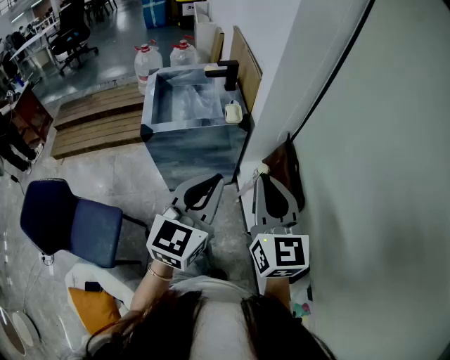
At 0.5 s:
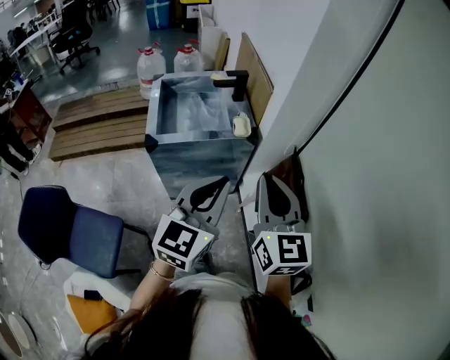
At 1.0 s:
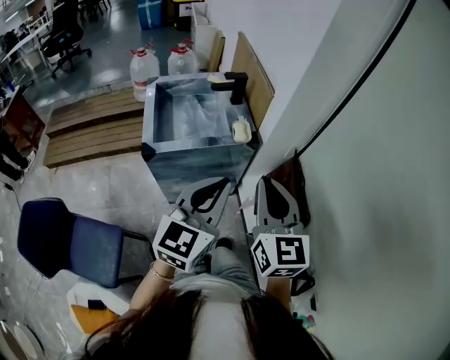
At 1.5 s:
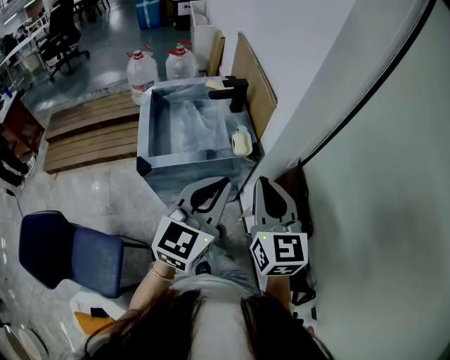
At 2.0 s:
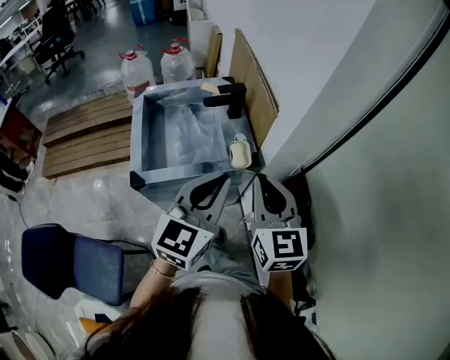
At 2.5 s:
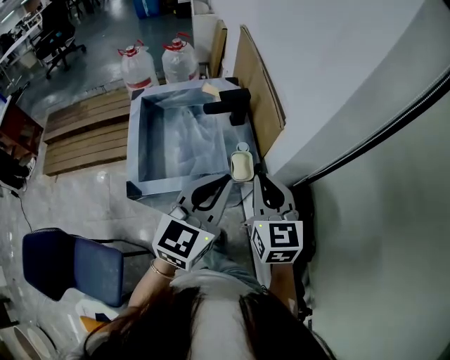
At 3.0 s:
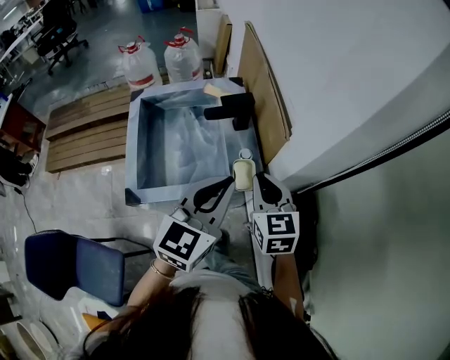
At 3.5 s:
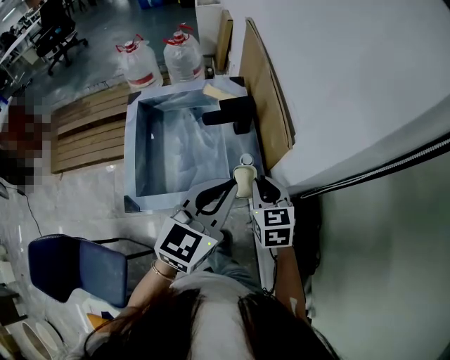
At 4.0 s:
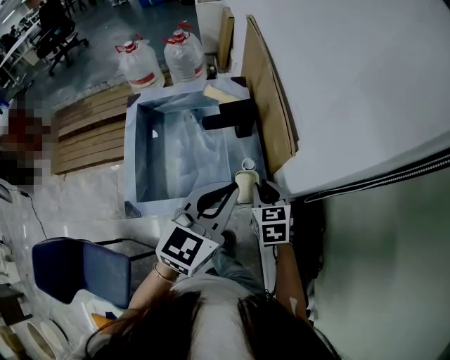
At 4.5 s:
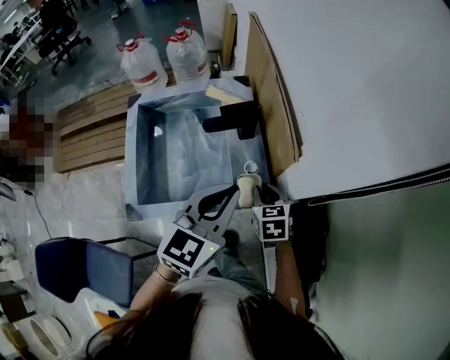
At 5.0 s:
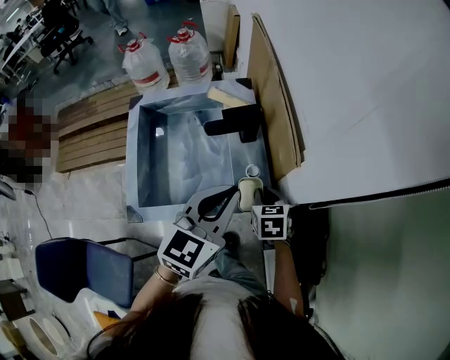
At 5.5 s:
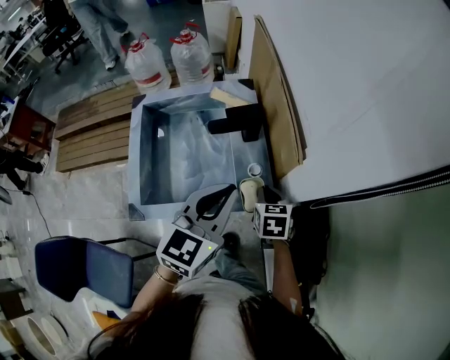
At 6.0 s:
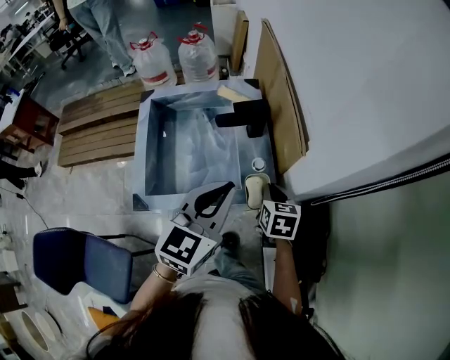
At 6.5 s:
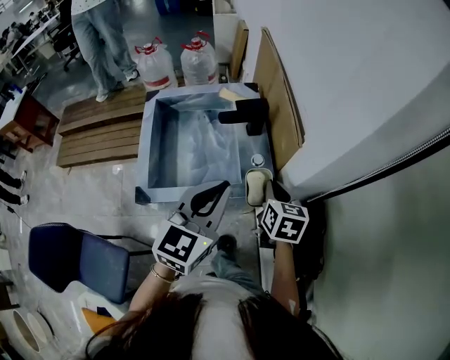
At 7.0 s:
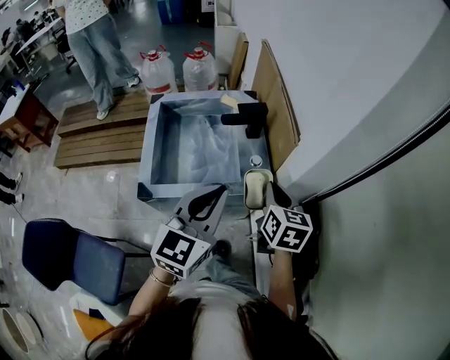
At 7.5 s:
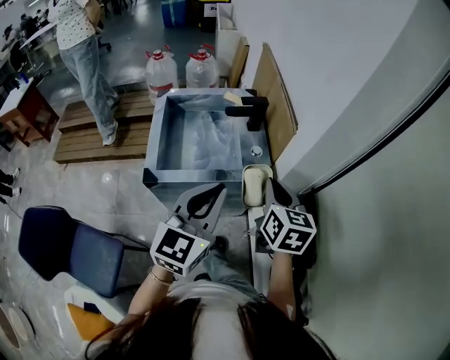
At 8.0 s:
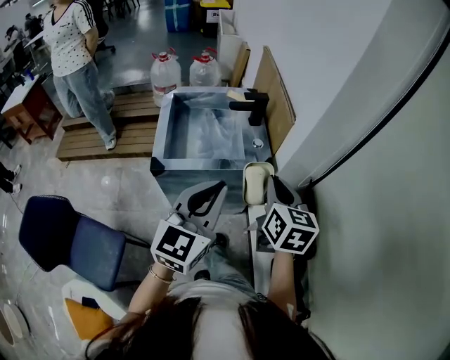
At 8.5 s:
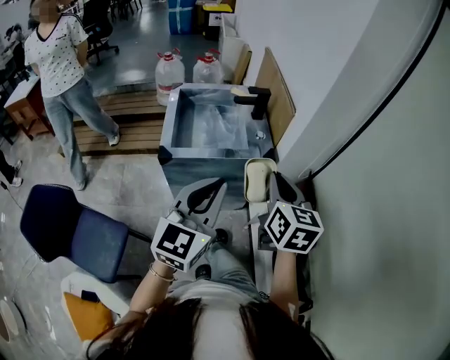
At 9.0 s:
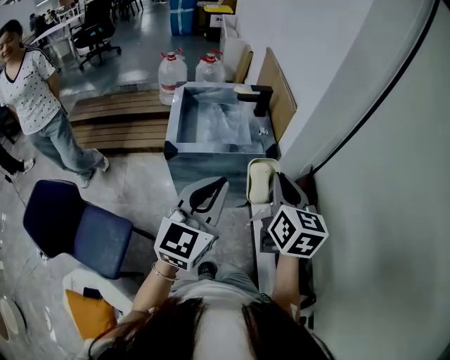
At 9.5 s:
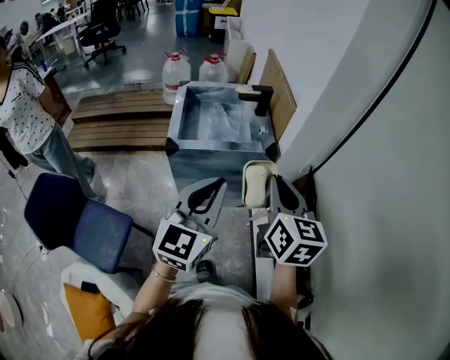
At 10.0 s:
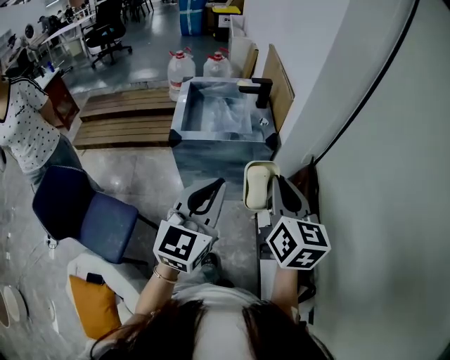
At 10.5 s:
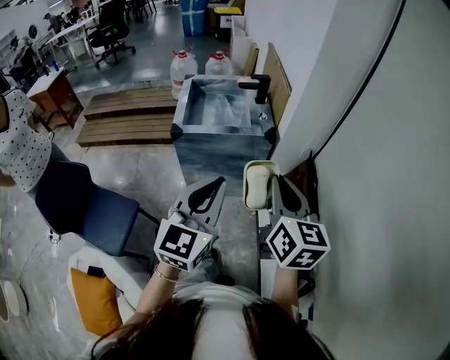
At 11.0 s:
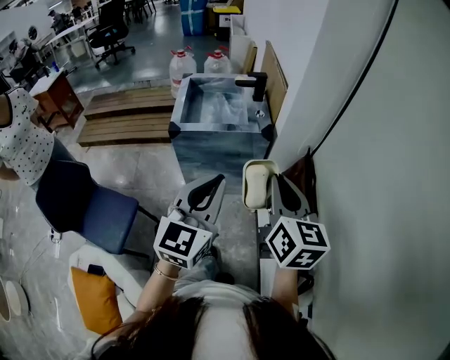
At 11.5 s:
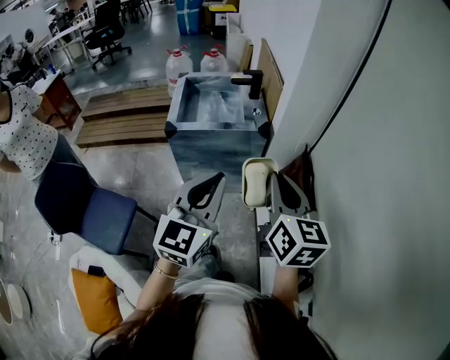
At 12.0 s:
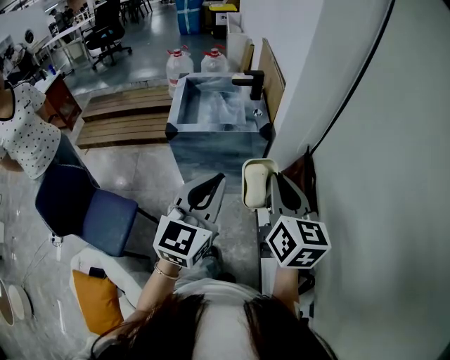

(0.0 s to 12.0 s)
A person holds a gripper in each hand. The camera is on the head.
0.0 s - 2.0 s: The grippers both shift forward by about 25 cm.
2.0 s - 4.0 s: The left gripper goes roughly 20 cm forward and downward, while the right gripper heads downward and forward, covering some 30 cm, and angles its fingers downward, by roughly 30 degrees.
4.0 s - 6.0 s: The grippers stay close to where they were, moving slightly.
6.0 s - 8.0 s: The right gripper travels backward and upward by roughly 30 cm, and swivels about 20 degrees. Meanwhile the left gripper shifts roughly 25 cm backward.
8.0 s - 10.0 s: The grippers both shift backward by roughly 20 cm.
10.0 s - 12.0 s: The right gripper shifts by about 5 cm.

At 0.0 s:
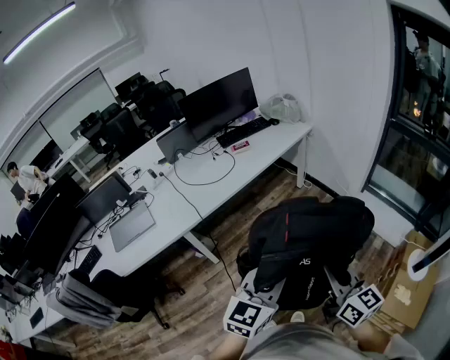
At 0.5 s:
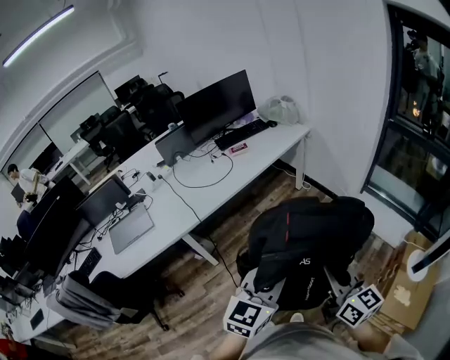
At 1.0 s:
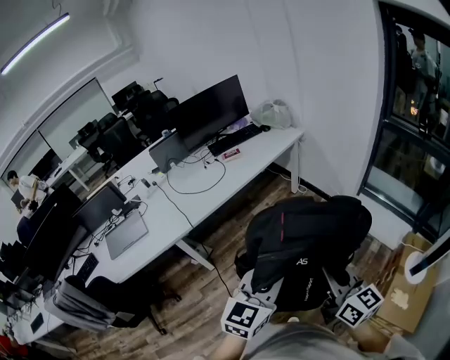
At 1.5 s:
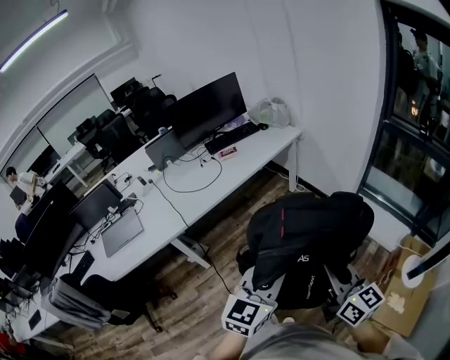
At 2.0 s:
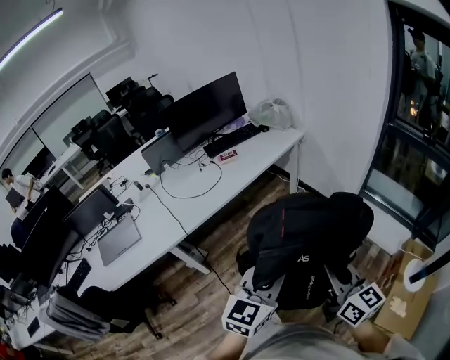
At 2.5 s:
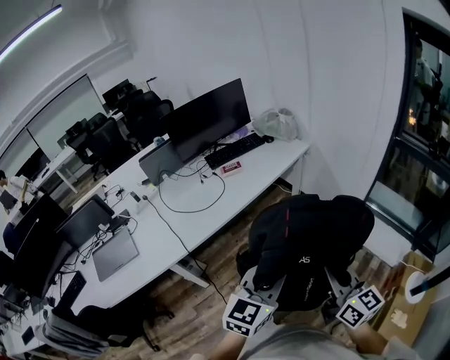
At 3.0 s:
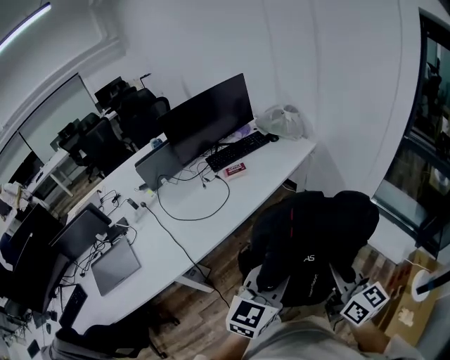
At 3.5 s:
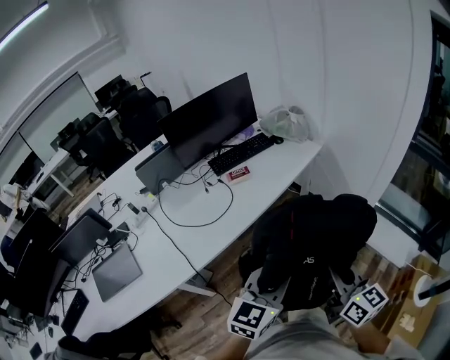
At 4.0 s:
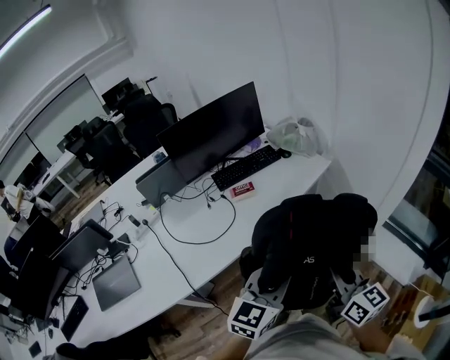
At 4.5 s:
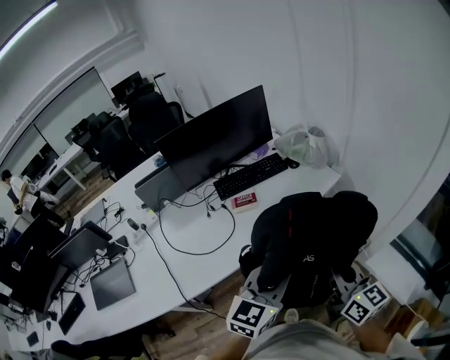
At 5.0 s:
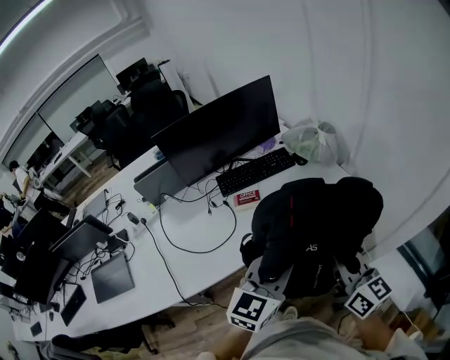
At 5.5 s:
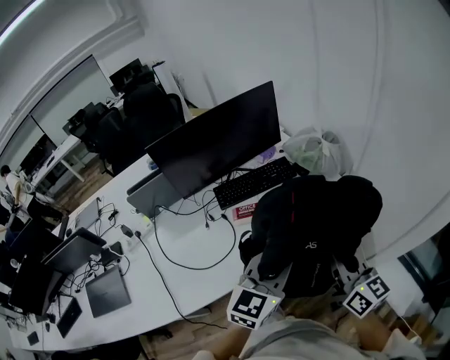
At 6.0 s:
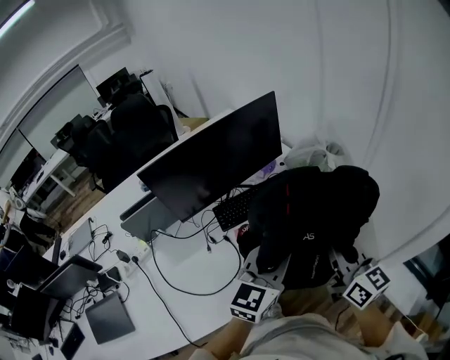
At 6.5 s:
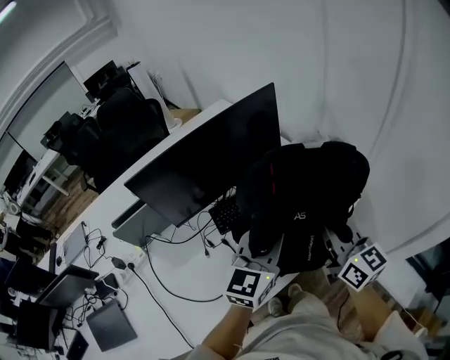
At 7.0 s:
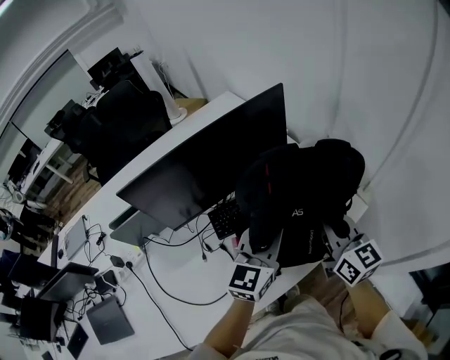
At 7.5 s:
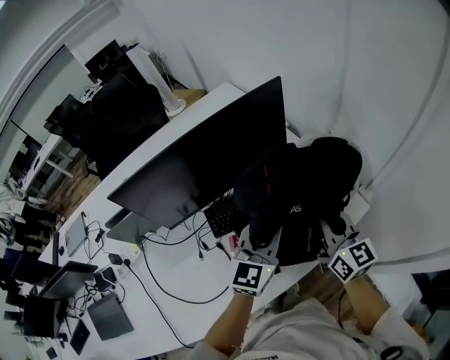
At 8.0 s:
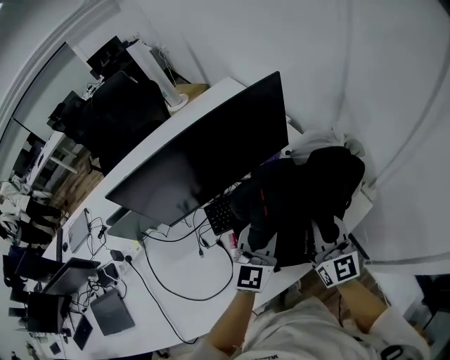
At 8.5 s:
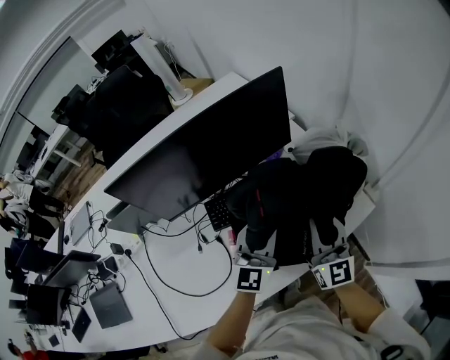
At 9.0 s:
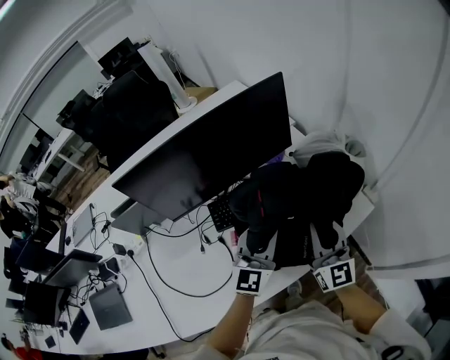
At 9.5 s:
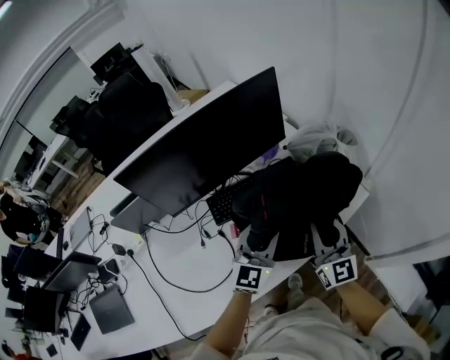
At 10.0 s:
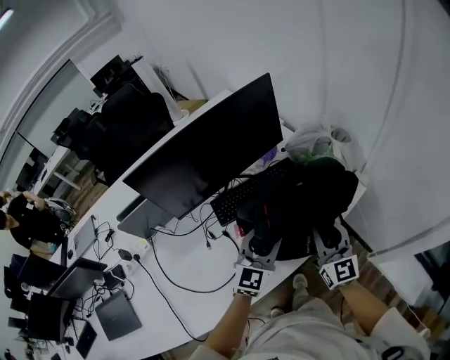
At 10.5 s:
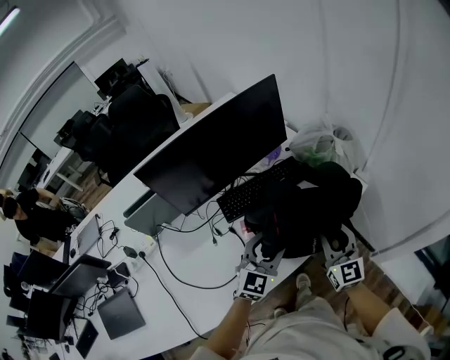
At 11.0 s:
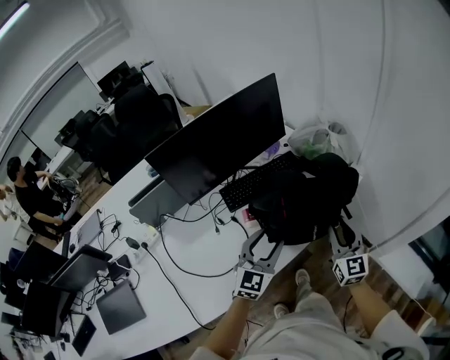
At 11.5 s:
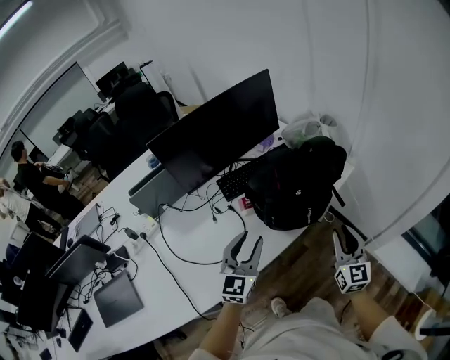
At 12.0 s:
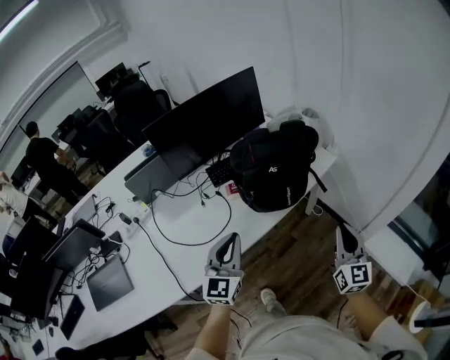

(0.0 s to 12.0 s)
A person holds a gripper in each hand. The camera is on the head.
0.0 s - 2.0 s: The two grippers go approximately 10 cm forward and to the right.
2.0 s - 4.0 s: Both grippers move forward, roughly 35 cm.
4.0 s - 6.0 s: Both grippers travel together forward, roughly 40 cm.
6.0 s - 8.0 s: The left gripper travels forward and downward by some 25 cm. Meanwhile the right gripper travels forward by about 25 cm.
8.0 s - 10.0 s: The grippers both shift backward by some 10 cm. The left gripper opens up.
10.0 s - 12.0 s: The right gripper travels backward and to the right by approximately 35 cm. Meanwhile the left gripper is displaced backward by approximately 30 cm, and closes.

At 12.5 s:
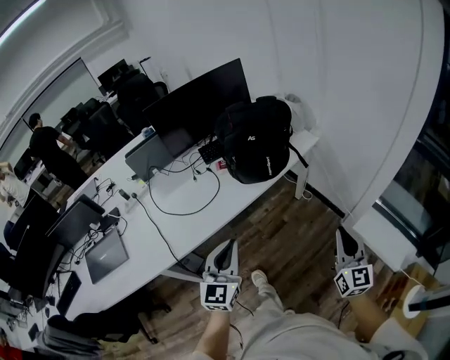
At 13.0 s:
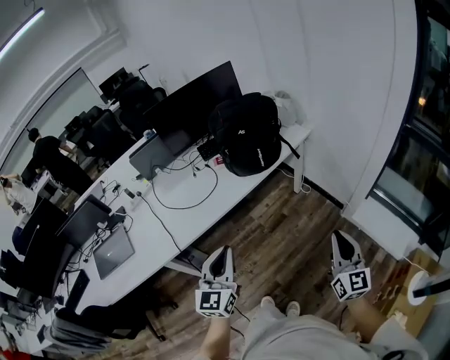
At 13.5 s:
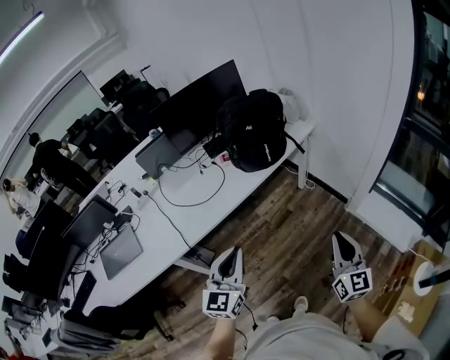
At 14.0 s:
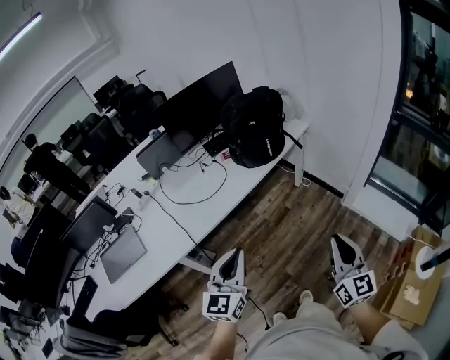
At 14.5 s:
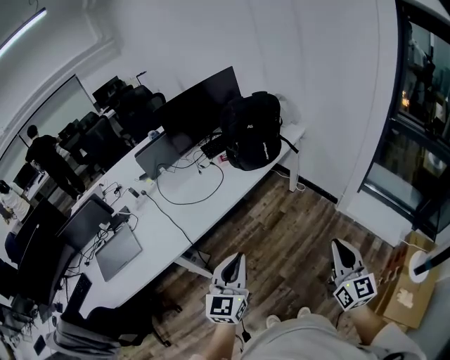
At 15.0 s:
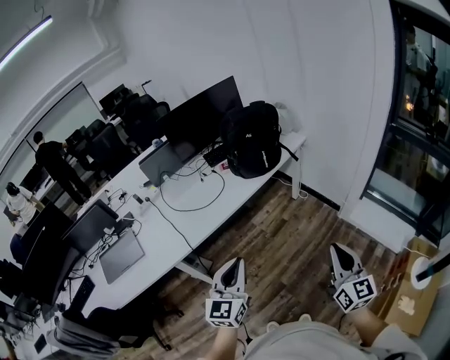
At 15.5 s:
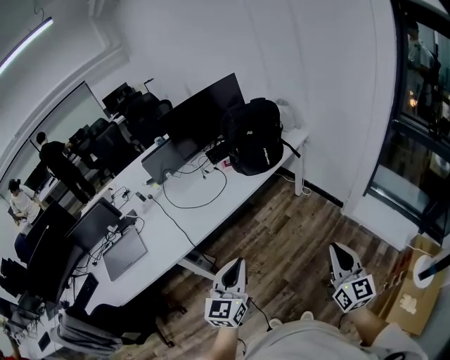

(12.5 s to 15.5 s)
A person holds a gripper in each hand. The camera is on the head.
12.5 s - 14.0 s: The right gripper heads backward and to the left, covering approximately 25 cm, while the left gripper is displaced backward by about 20 cm.
14.0 s - 15.5 s: The left gripper ends up roughly 5 cm from where it was.
